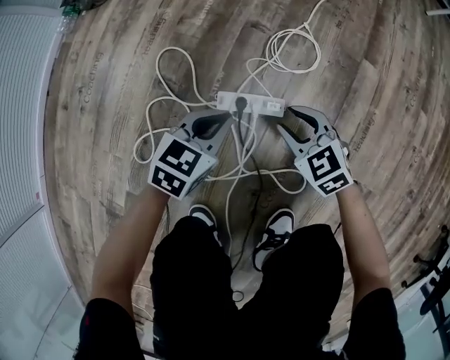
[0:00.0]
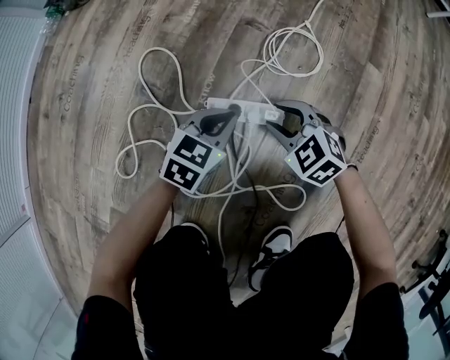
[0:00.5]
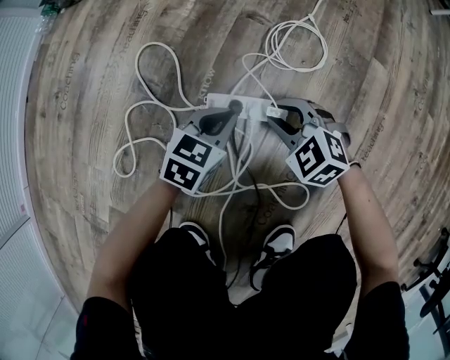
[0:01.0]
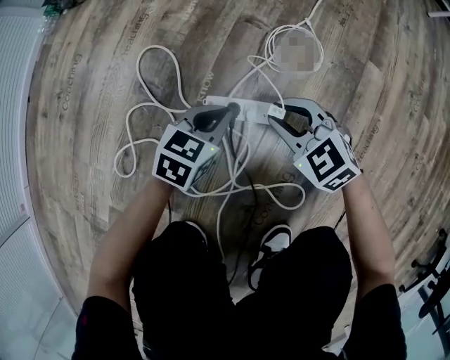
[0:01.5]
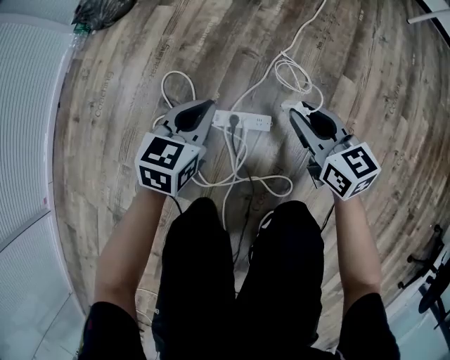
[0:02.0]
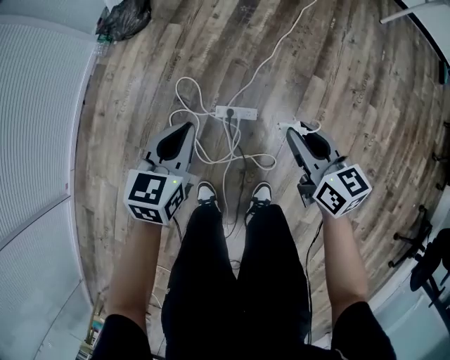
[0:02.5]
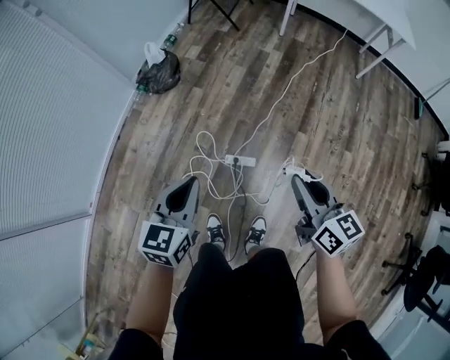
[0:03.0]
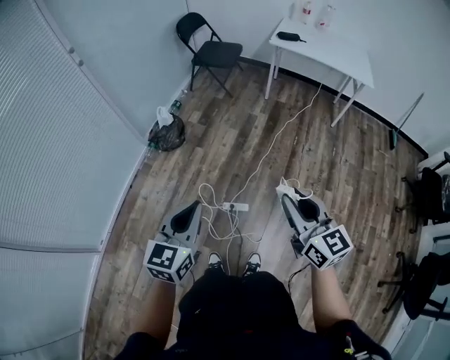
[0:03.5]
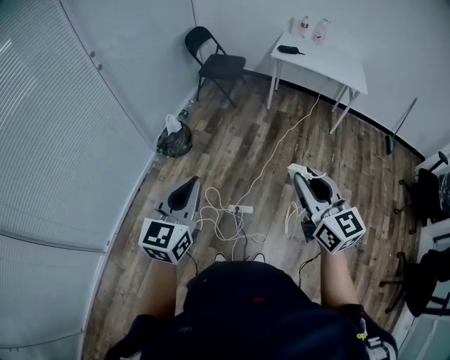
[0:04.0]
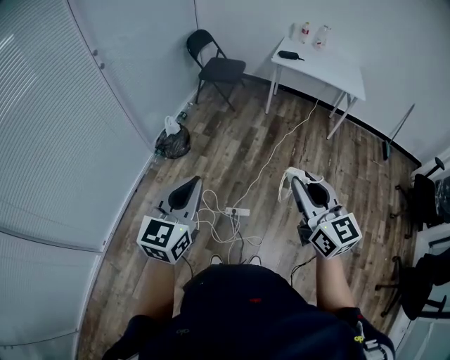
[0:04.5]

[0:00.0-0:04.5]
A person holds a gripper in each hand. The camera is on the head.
0:00.0 to 0:02.0: The left gripper goes approximately 15 cm upward and forward; the right gripper moves upward, some 15 cm, and rotates roughly 40 degrees.
0:02.0 to 0:04.5: The two grippers go some 90 cm upward. The left gripper turns by approximately 30 degrees. The right gripper turns by roughly 30 degrees.

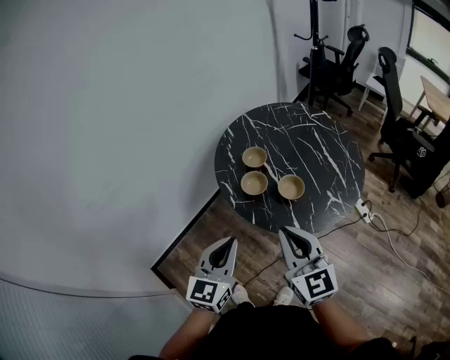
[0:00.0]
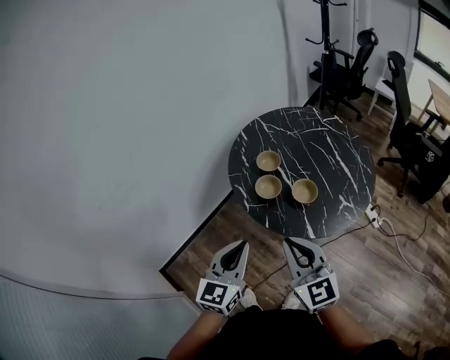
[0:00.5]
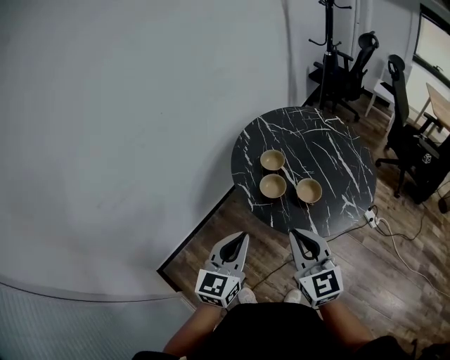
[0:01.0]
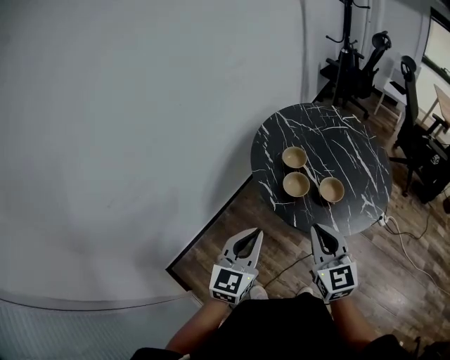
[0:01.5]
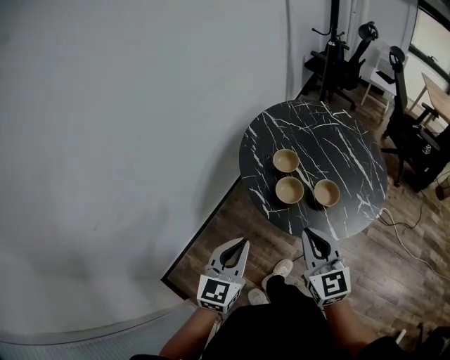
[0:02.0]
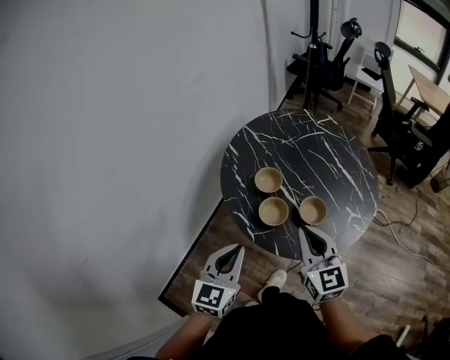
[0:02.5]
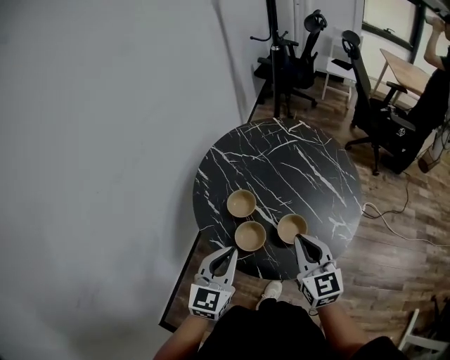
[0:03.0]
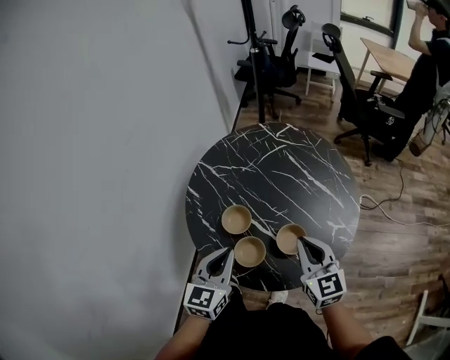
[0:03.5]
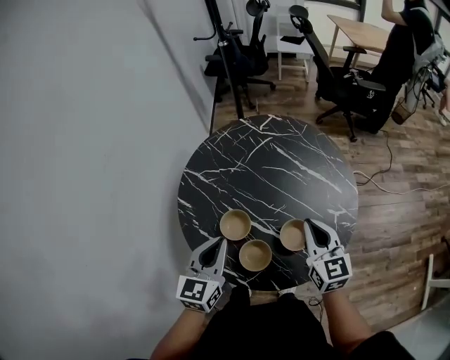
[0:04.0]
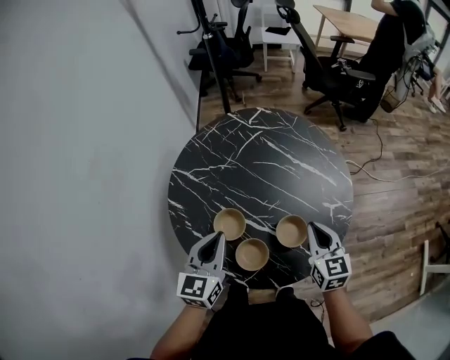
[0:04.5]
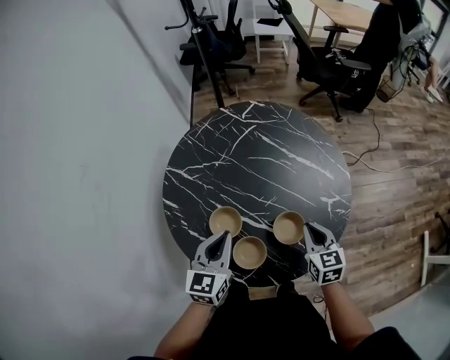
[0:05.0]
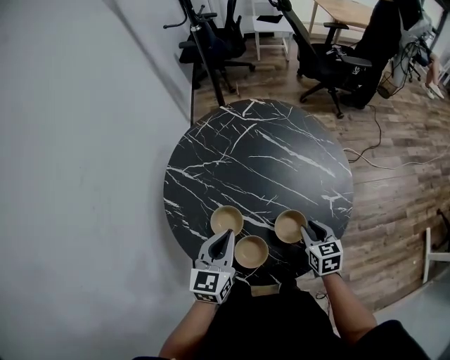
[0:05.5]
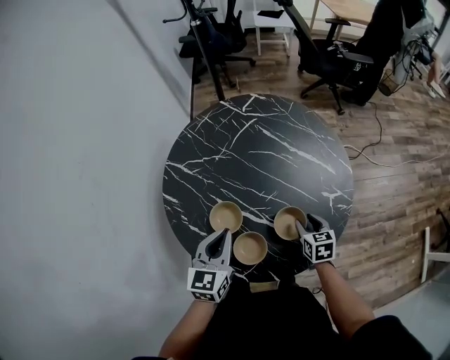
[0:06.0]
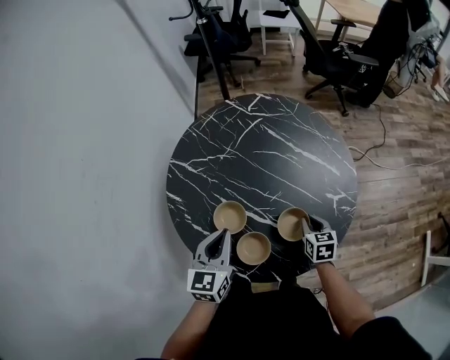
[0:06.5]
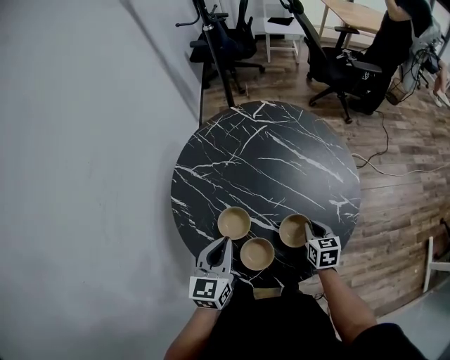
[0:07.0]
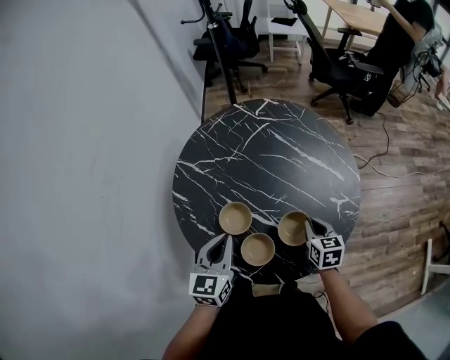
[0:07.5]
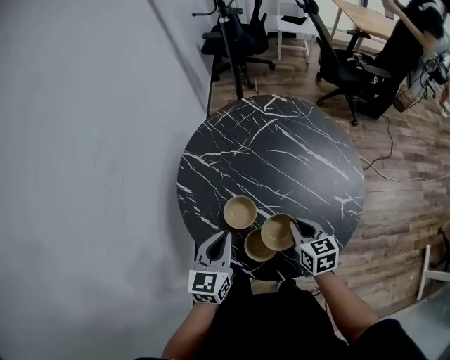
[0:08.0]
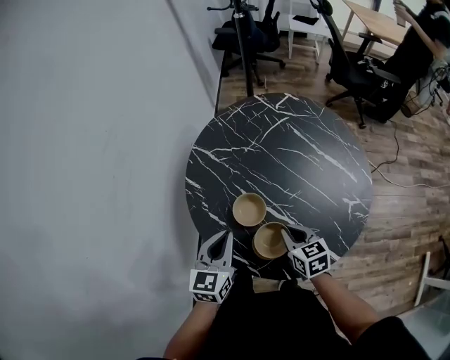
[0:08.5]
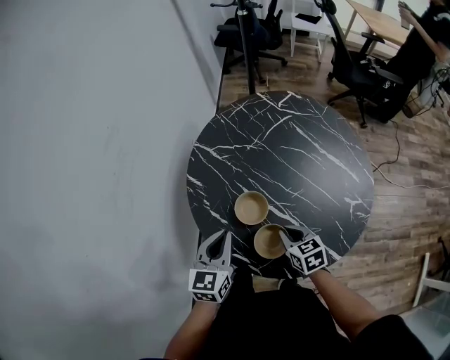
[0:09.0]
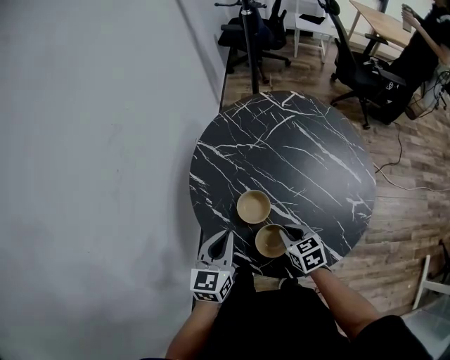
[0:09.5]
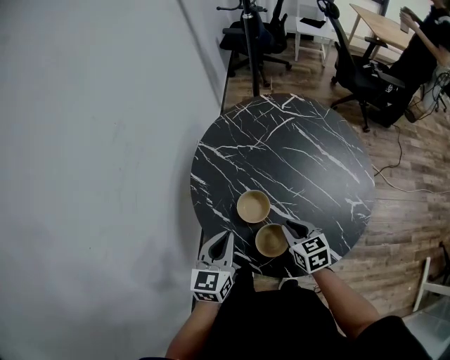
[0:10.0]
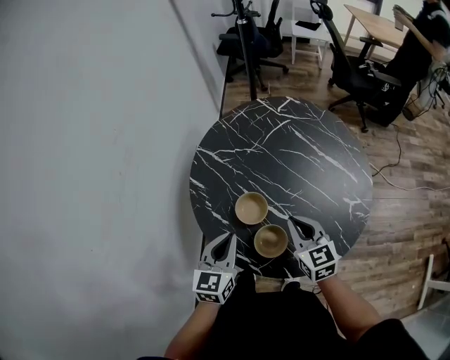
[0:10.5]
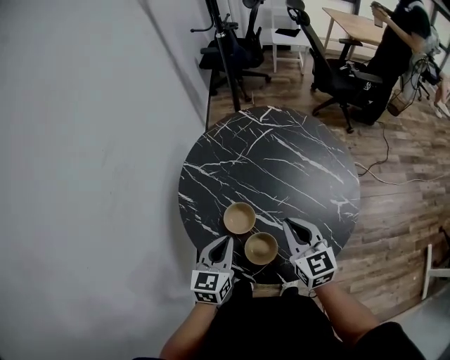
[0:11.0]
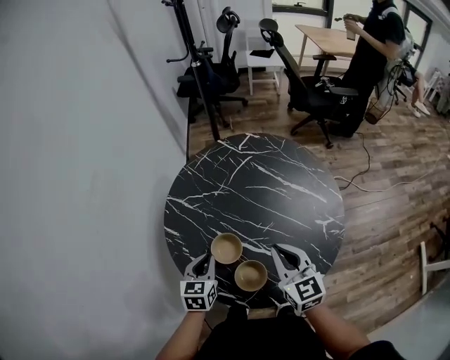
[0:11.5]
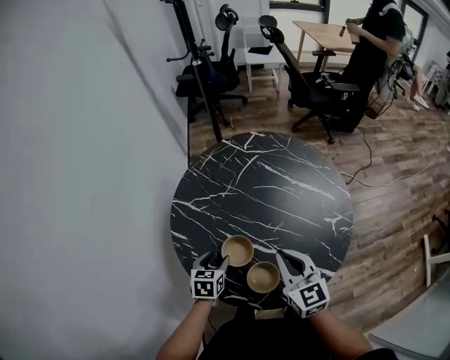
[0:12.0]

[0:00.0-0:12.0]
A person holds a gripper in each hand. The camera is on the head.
0:00.0 to 0:02.0: Both grippers move to the left and forward, about 15 cm.
0:02.0 to 0:04.0: The right gripper shifts by some 30 cm, and swivels some 40 degrees, while the left gripper changes place by roughly 35 cm, and changes its angle by approximately 30 degrees.
0:04.0 to 0:06.0: The right gripper shifts roughly 20 cm downward, points its fingers some 30 degrees further downward, and opens up; the left gripper is displaced downward by roughly 5 cm.
0:06.0 to 0:08.0: The left gripper changes place by about 5 cm; the right gripper travels to the left and upward by roughly 15 cm, and closes its fingers.
0:08.0 to 0:10.0: The right gripper is displaced to the left by about 5 cm.
0:10.0 to 0:12.0: The left gripper goes roughly 15 cm downward and forward, rotates about 30 degrees, and opens up. Meanwhile the right gripper shifts about 15 cm upward, and changes its angle by about 30 degrees.

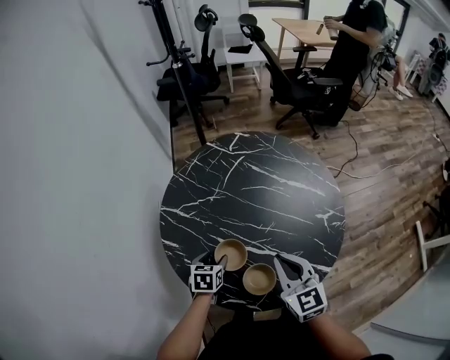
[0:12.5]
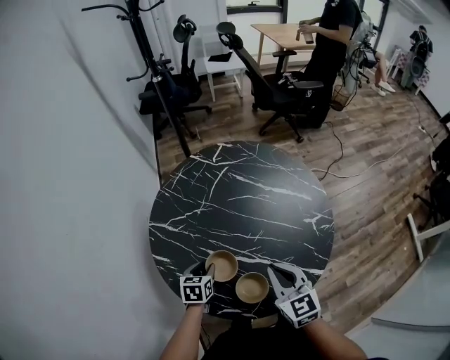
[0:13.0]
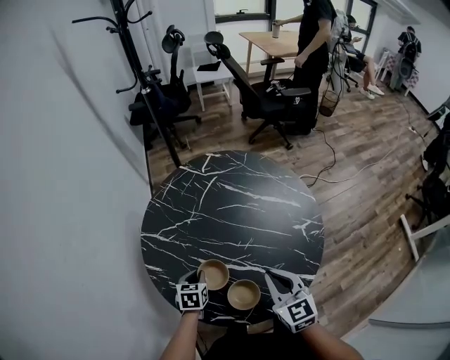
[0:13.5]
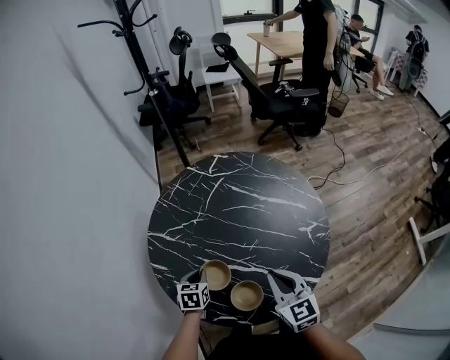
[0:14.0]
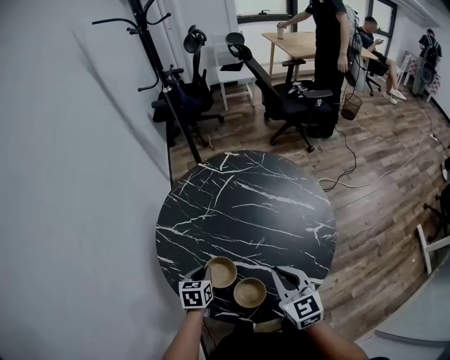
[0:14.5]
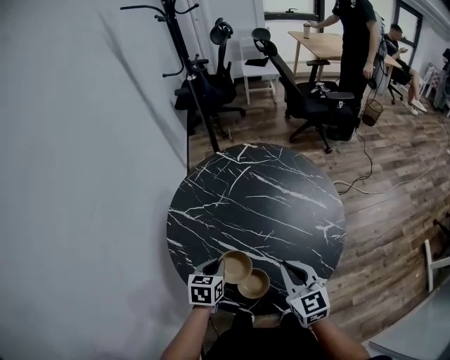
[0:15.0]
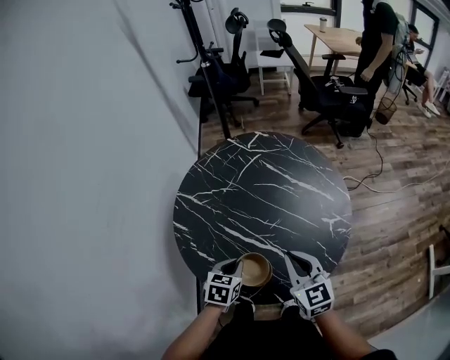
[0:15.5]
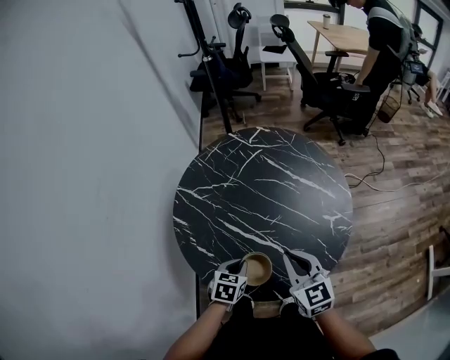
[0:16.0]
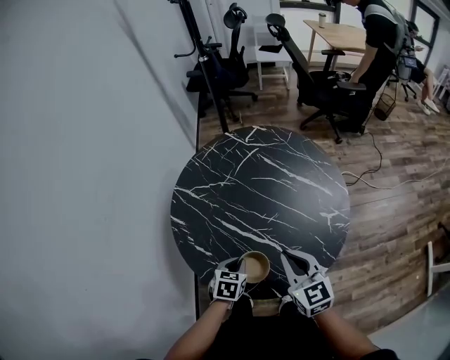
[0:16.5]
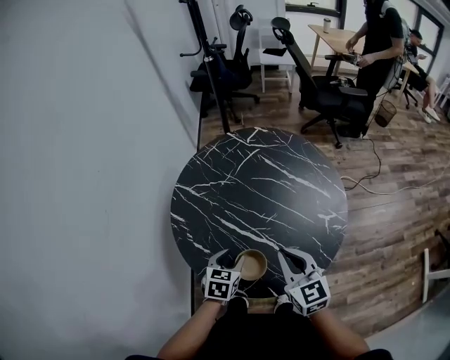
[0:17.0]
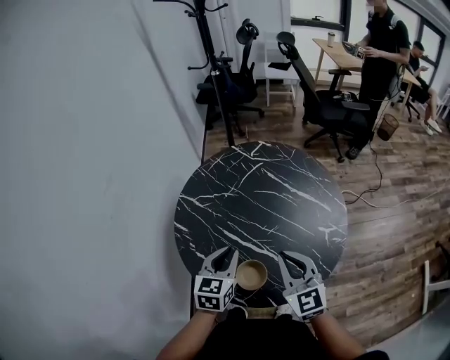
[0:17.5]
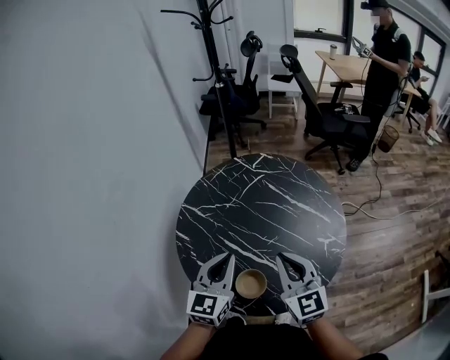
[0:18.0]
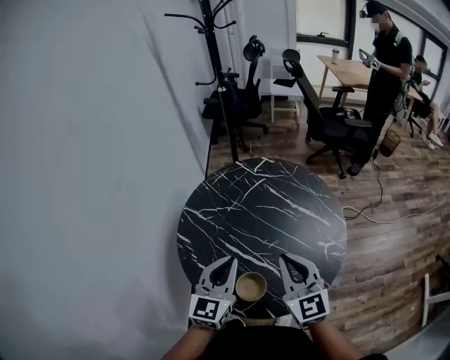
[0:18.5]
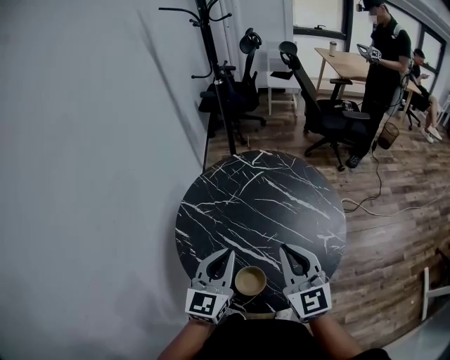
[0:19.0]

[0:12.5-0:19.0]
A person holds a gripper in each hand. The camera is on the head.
0:12.5 to 0:14.5: The left gripper closes.
0:14.5 to 0:17.0: The left gripper travels backward and to the right by about 10 cm, and opens up.
0:17.0 to 0:19.0: The right gripper moves upward, approximately 10 cm. The left gripper shifts roughly 20 cm upward, tilts its fingers roughly 40 degrees upward, and closes.

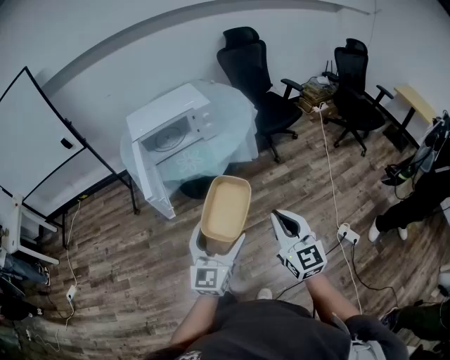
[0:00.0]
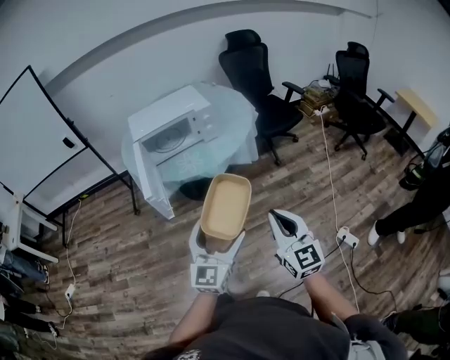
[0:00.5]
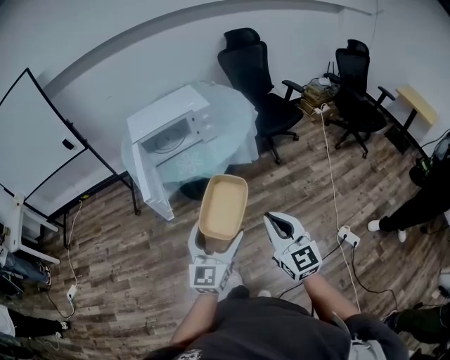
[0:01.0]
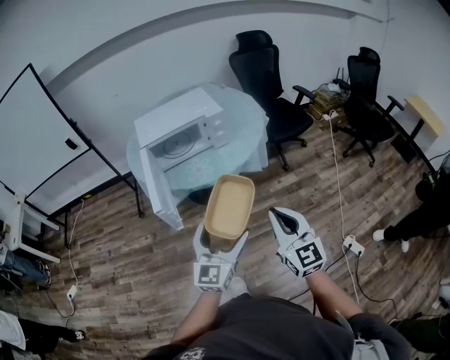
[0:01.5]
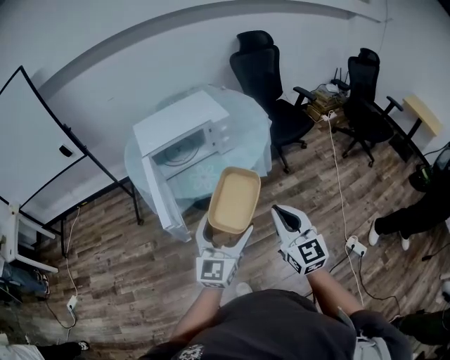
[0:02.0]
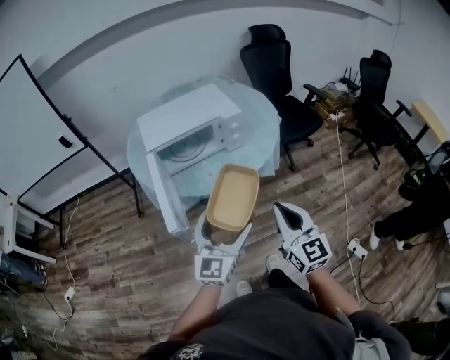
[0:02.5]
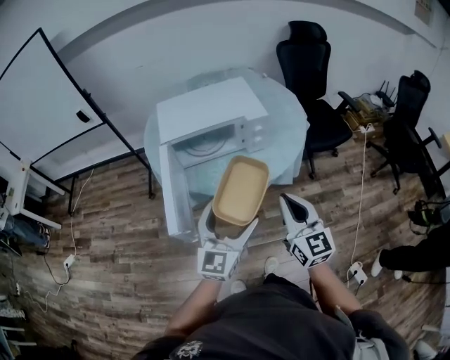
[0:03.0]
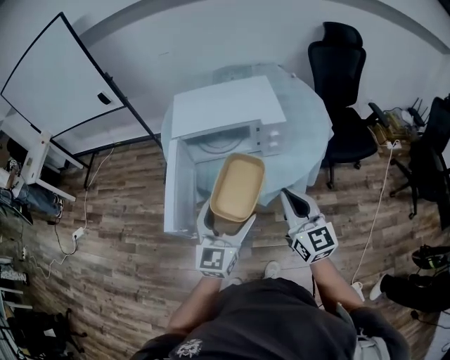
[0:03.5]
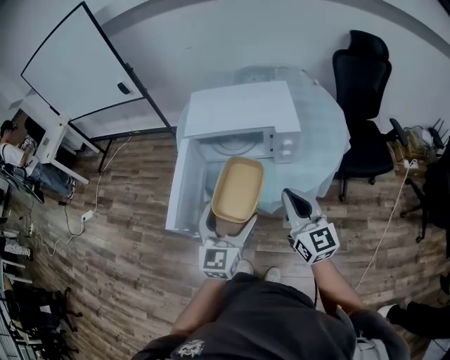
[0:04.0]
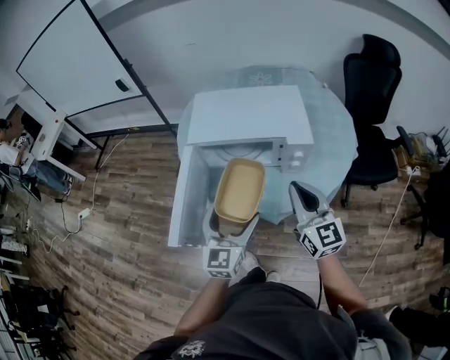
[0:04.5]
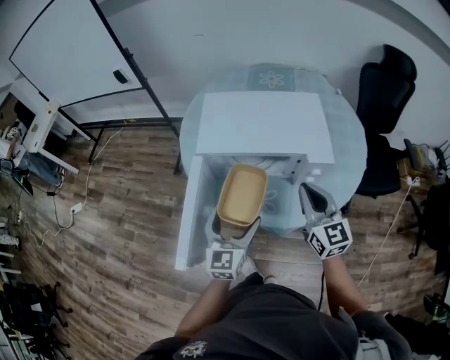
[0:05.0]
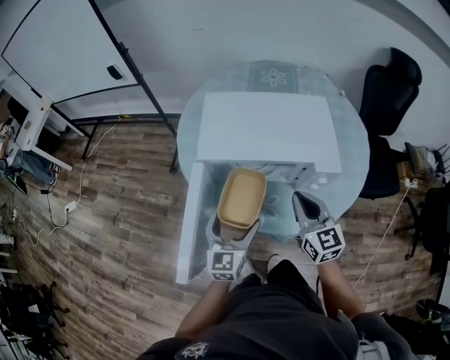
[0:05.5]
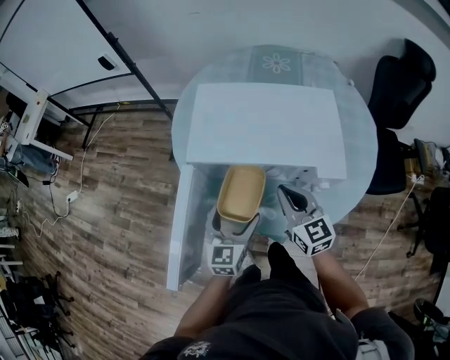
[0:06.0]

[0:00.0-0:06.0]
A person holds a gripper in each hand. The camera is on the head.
0:00.0 to 0:02.0: The left gripper moves forward, roughly 15 cm, while the right gripper moves forward and to the left, roughly 15 cm.
0:02.0 to 0:04.0: The right gripper changes place by roughly 25 cm, and turns by roughly 30 degrees, while the left gripper ends up roughly 20 cm from where it was, and turns by approximately 30 degrees.
0:04.0 to 0:06.0: The two grippers go roughly 25 cm forward and downward.
